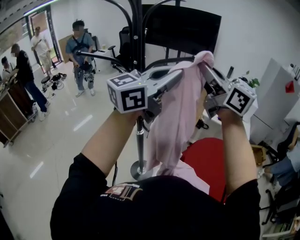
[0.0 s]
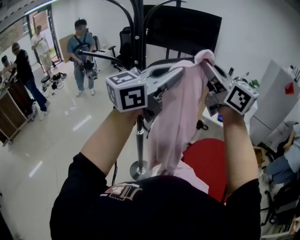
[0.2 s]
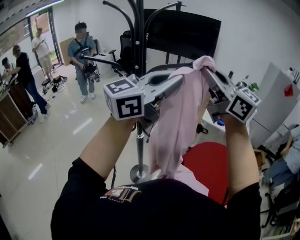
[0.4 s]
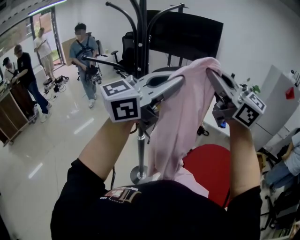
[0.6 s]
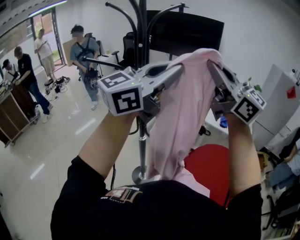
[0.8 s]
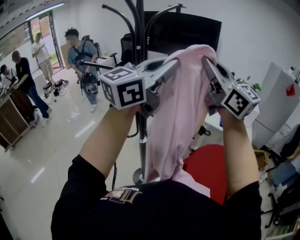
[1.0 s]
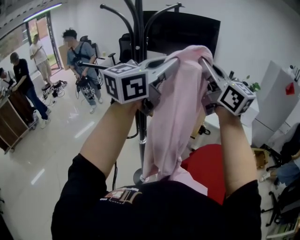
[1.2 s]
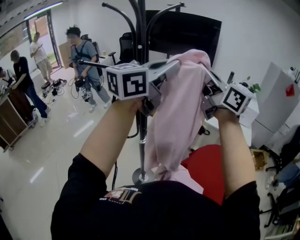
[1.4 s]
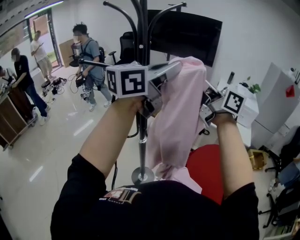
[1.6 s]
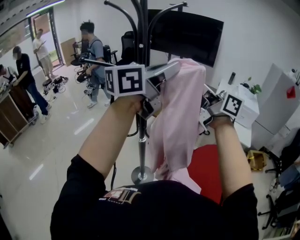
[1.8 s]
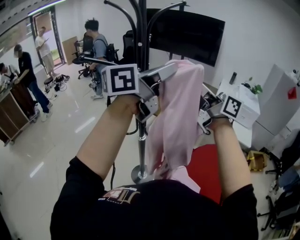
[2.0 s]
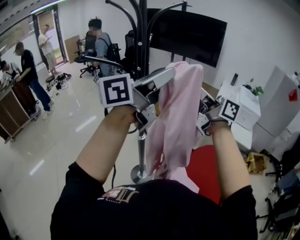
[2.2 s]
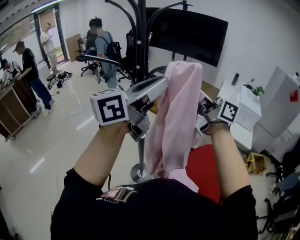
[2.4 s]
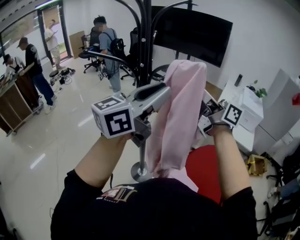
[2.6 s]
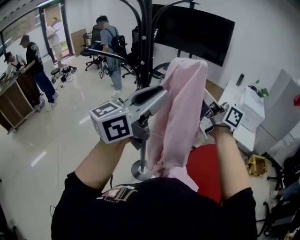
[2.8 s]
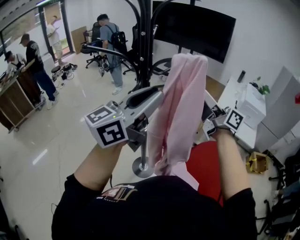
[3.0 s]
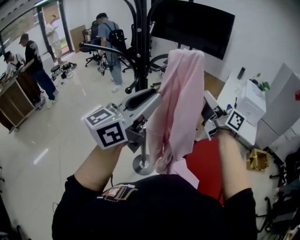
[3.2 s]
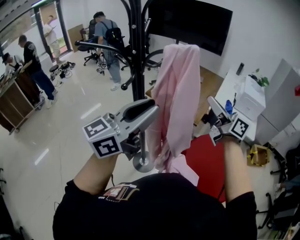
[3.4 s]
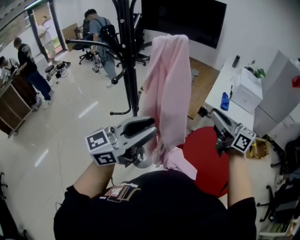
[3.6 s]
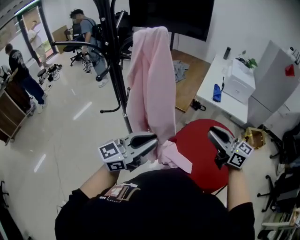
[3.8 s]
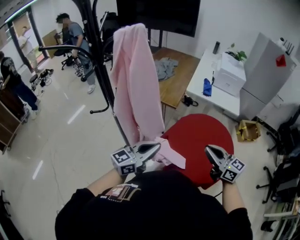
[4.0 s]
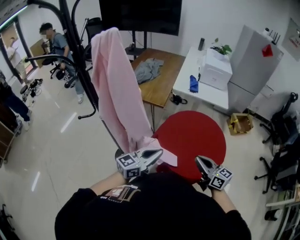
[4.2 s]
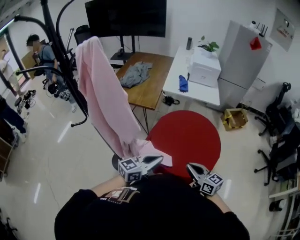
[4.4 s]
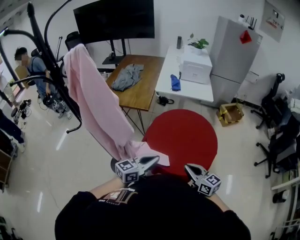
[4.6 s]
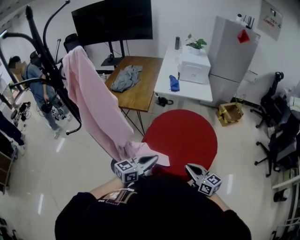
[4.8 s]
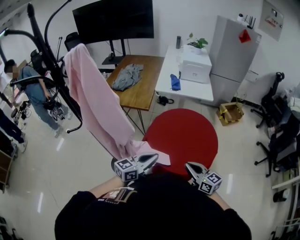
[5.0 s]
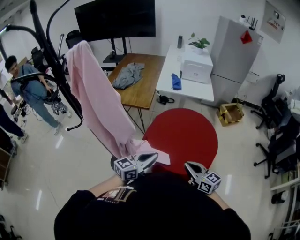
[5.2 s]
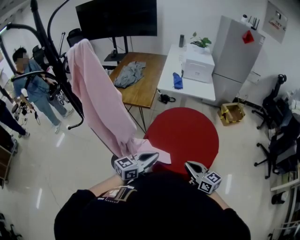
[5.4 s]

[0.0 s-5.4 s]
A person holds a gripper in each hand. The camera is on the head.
0.0 to 1.4 s: The left gripper moves approximately 5 cm.
1.4 to 2.8 s: The left gripper travels downward and backward by roughly 10 cm; the right gripper moves downward, about 10 cm, and changes its angle by some 30 degrees.
2.8 to 4.0 s: The left gripper is displaced downward and to the right by about 35 cm, rotates some 20 degrees, and closes its fingers. Meanwhile the right gripper shifts about 40 cm downward, to the right and backward, swivels about 40 degrees, and closes its fingers.
4.0 to 5.4 s: The left gripper is displaced to the right and downward by some 15 cm, while the right gripper is displaced downward, backward and to the right by some 15 cm.

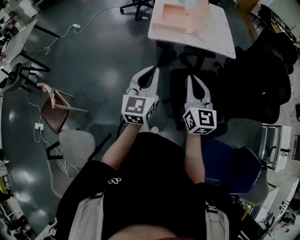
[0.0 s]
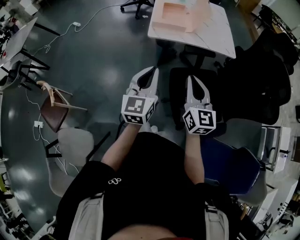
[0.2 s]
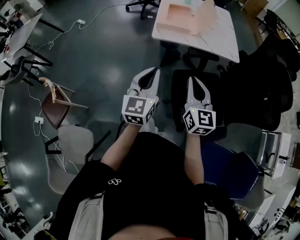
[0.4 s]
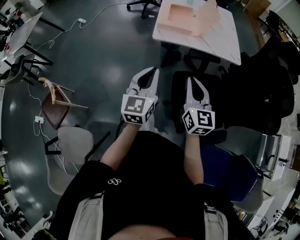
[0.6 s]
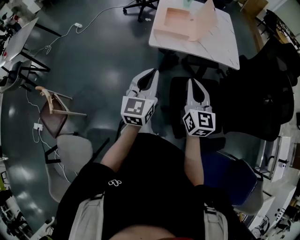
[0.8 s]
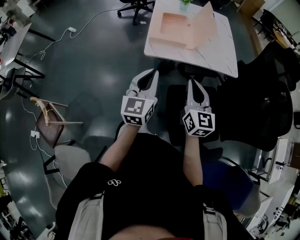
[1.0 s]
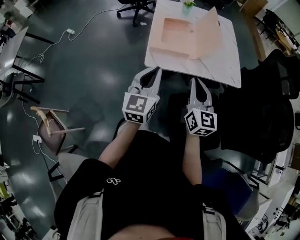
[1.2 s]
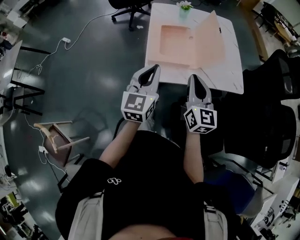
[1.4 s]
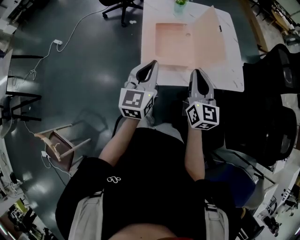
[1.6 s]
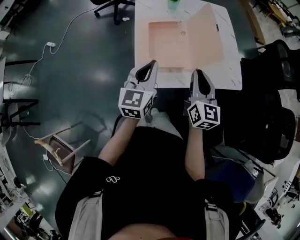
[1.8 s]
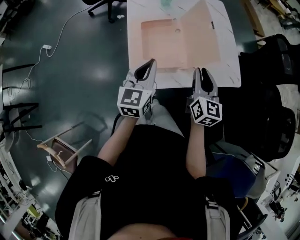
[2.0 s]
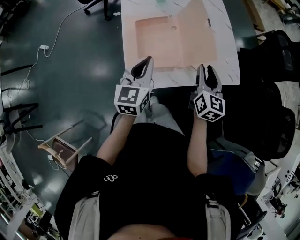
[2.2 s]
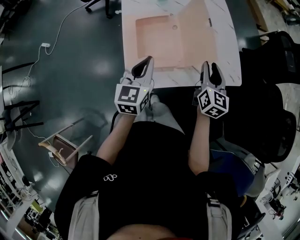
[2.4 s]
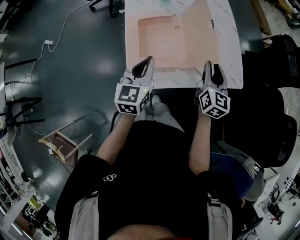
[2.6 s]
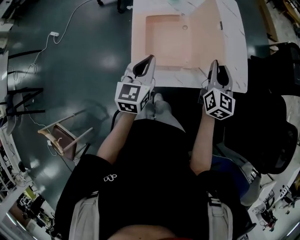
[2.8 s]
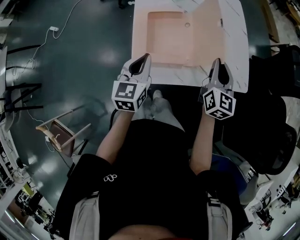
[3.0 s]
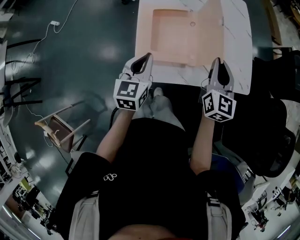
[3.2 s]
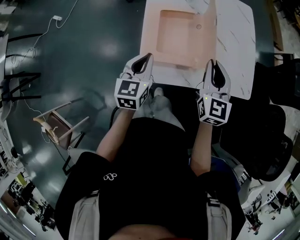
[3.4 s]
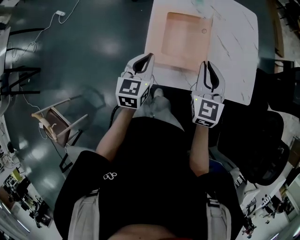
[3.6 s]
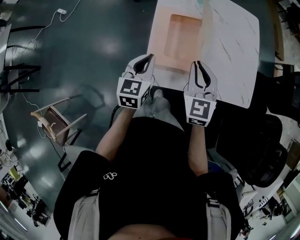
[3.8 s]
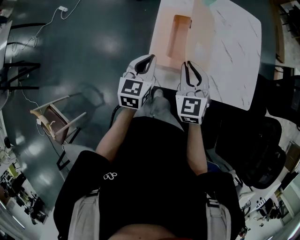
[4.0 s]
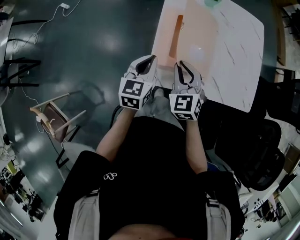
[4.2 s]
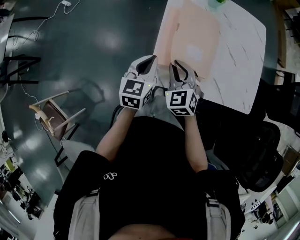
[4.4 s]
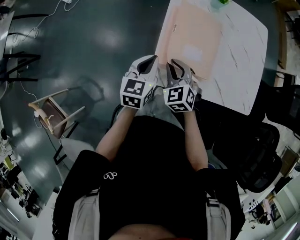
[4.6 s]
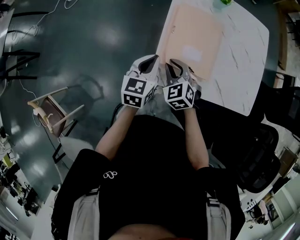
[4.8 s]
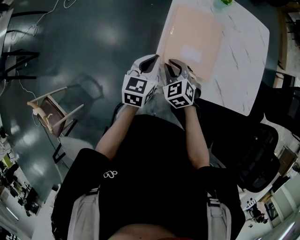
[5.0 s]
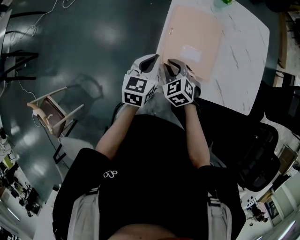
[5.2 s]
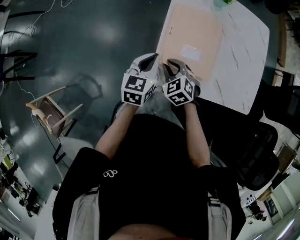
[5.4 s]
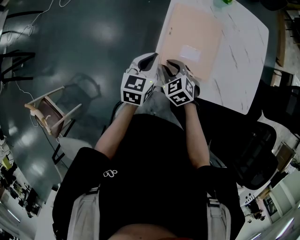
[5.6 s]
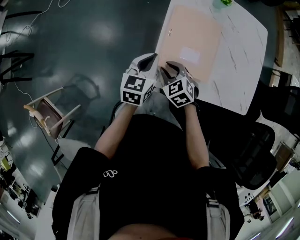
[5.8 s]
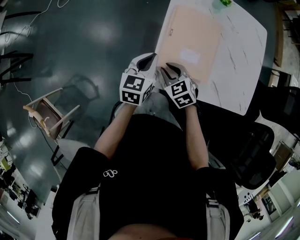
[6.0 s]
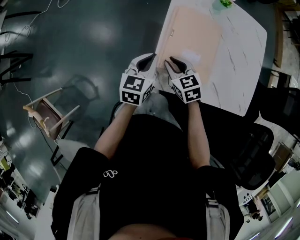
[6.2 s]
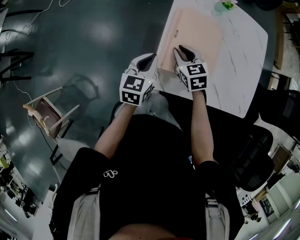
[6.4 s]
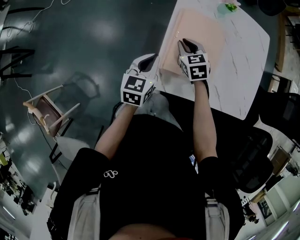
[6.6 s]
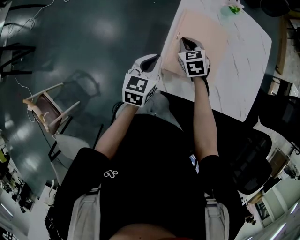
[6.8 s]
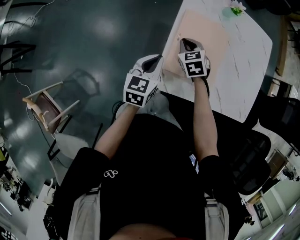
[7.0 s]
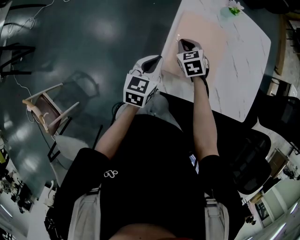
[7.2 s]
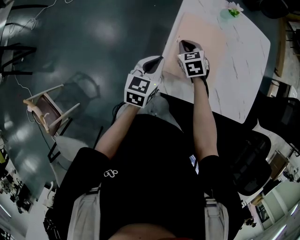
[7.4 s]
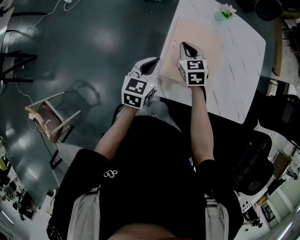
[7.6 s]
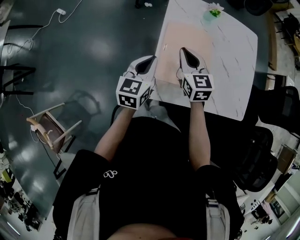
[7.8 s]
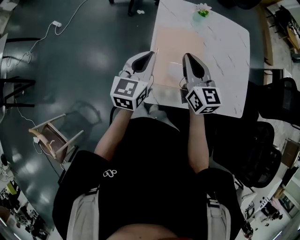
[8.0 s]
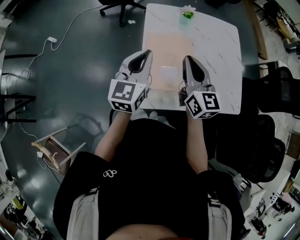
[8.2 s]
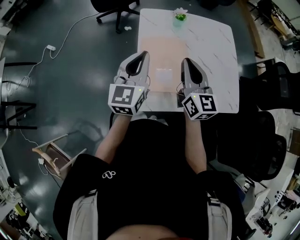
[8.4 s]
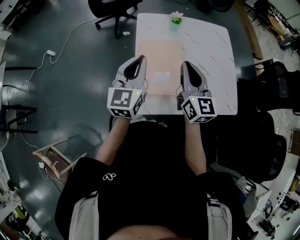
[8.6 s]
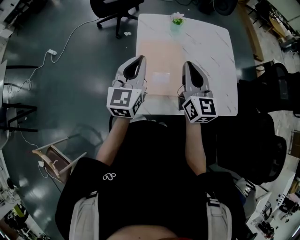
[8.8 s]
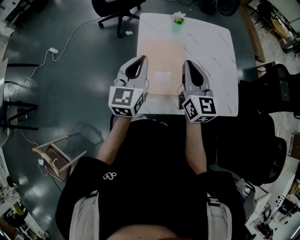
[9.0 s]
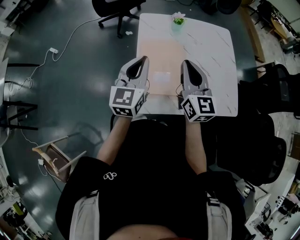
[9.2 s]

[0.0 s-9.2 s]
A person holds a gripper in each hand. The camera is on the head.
0.0 to 1.6 s: The two grippers travel together, forward, some 40 cm.
1.6 to 3.0 s: The left gripper travels forward and downward by roughly 10 cm, while the right gripper moves forward and to the right, some 15 cm, and opens, then closes once more.
3.0 to 4.6 s: The right gripper shifts about 30 cm to the left and downward, and rotates some 60 degrees. Meanwhile the left gripper travels to the left and downward by roughly 10 cm.
4.6 to 6.2 s: The right gripper changes its angle by some 30 degrees.
6.2 to 7.6 s: The right gripper goes some 10 cm forward.
7.6 to 9.2 s: Both grippers travel together upward and to the right, approximately 20 cm. The left gripper swivels about 20 degrees. Meanwhile the right gripper tips its fingers upward by about 40 degrees.

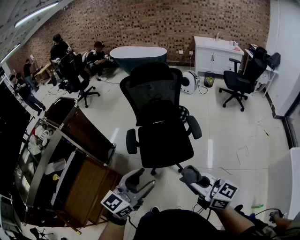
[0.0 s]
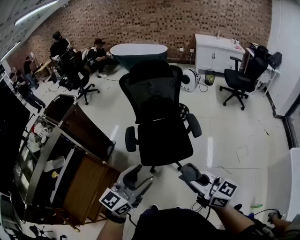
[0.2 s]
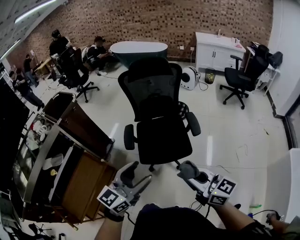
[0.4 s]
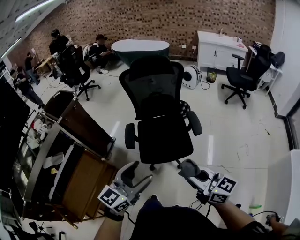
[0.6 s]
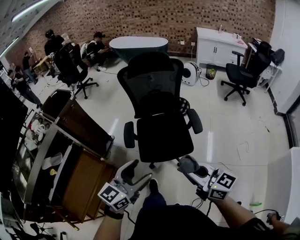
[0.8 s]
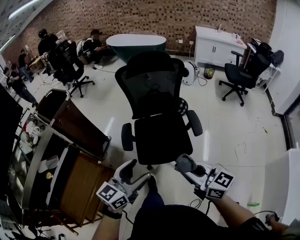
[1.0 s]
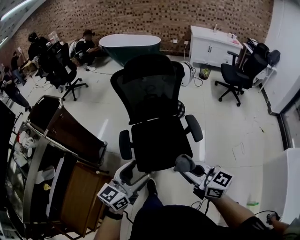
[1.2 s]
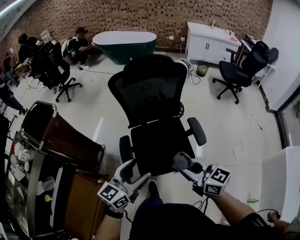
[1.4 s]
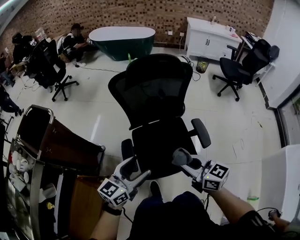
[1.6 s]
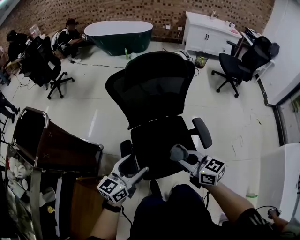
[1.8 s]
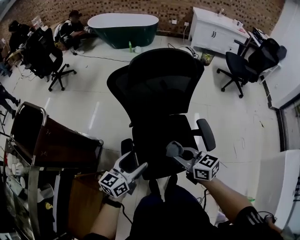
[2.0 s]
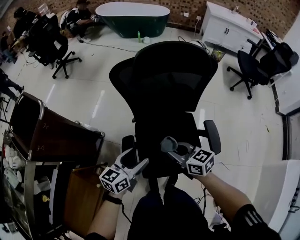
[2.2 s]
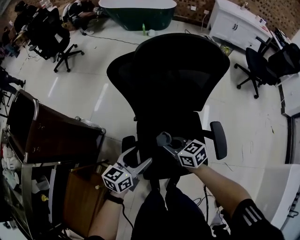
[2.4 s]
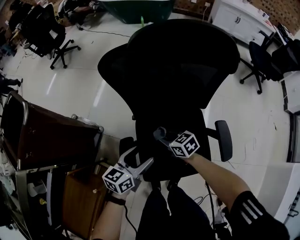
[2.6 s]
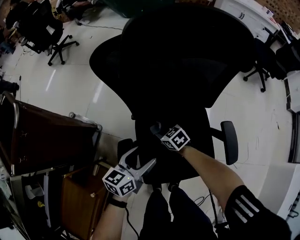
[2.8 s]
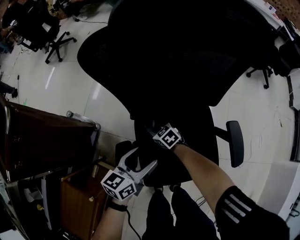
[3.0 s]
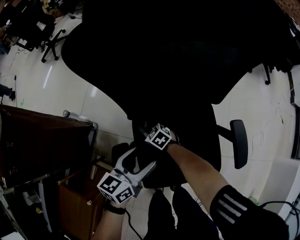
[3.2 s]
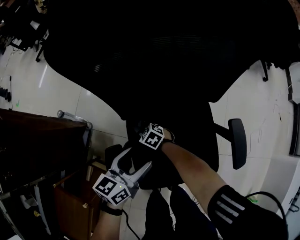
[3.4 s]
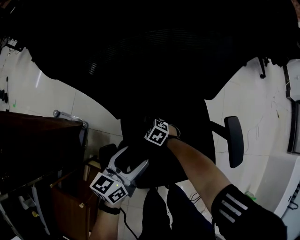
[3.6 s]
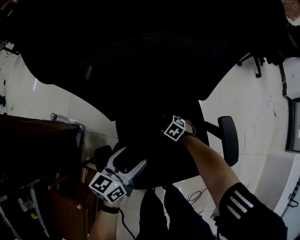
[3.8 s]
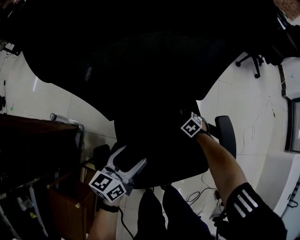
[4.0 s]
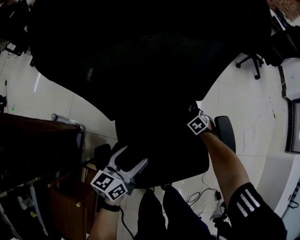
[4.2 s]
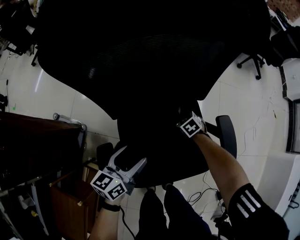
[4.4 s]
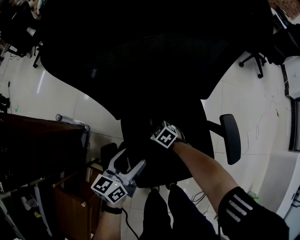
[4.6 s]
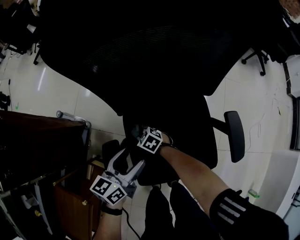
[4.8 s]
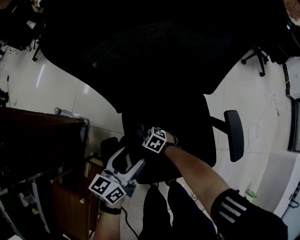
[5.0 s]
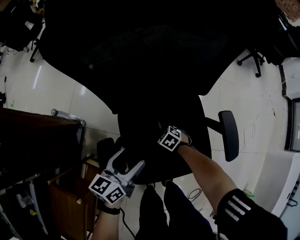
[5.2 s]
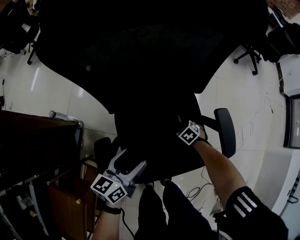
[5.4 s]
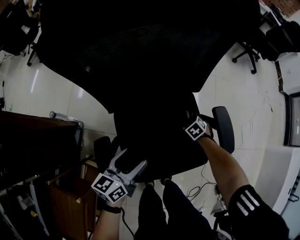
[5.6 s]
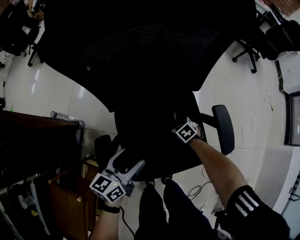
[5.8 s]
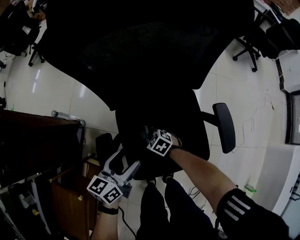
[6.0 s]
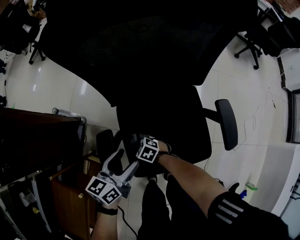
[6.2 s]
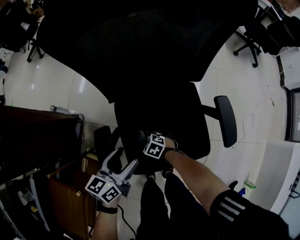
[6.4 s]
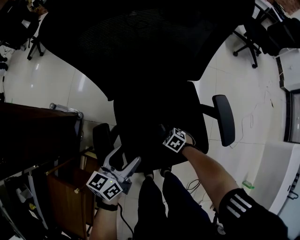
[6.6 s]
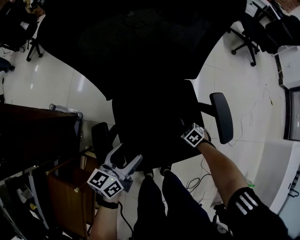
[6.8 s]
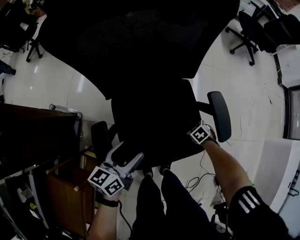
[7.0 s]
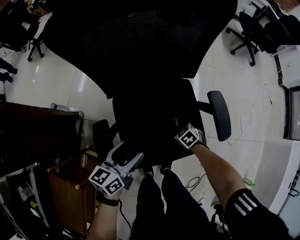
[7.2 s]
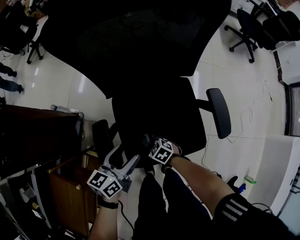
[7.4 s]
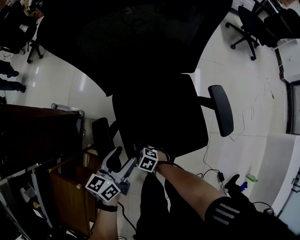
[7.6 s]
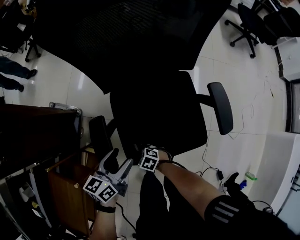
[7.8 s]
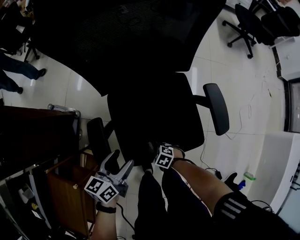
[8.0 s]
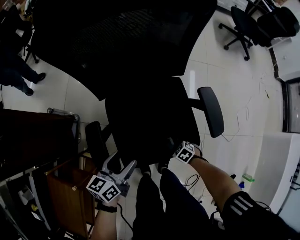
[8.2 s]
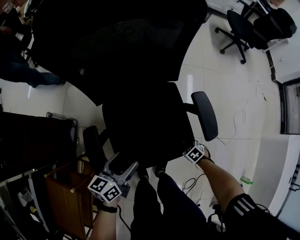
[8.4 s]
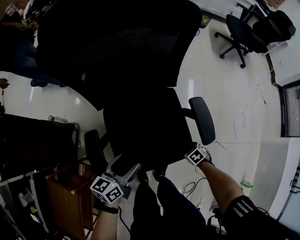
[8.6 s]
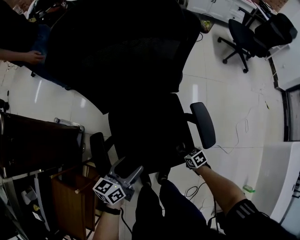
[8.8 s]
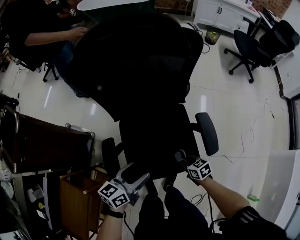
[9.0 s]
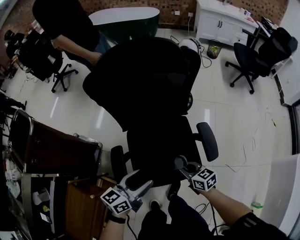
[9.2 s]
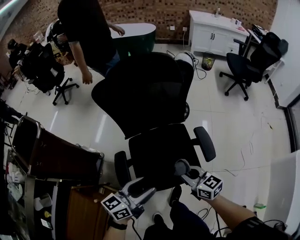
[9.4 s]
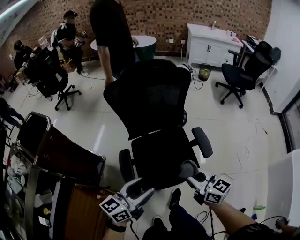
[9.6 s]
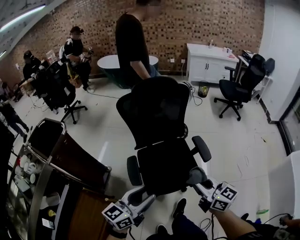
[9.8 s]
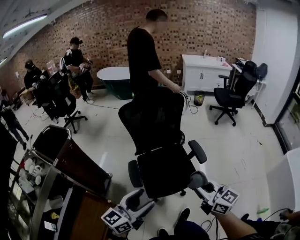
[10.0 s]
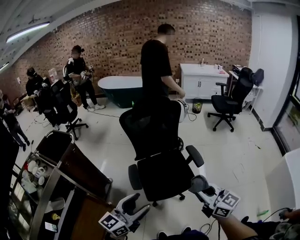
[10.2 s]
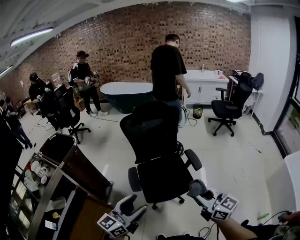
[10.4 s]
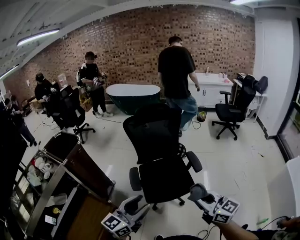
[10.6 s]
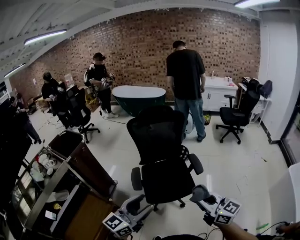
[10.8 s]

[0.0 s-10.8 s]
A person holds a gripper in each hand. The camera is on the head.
0.0 to 1.6 s: Both grippers move forward, some 30 cm.
1.6 to 3.0 s: The right gripper shifts some 60 cm downward and forward, and tilts its fingers some 40 degrees downward, while the left gripper heads downward and forward, covering roughly 35 cm, and swivels approximately 20 degrees.
4.6 to 6.2 s: The left gripper changes place by about 5 cm.
6.2 to 7.8 s: The left gripper moves approximately 5 cm.
7.8 to 9.2 s: The left gripper heads upward, covering roughly 20 cm. The right gripper is displaced upward by approximately 30 cm, and changes its angle by approximately 50 degrees.
9.2 to 10.8 s: The left gripper travels backward and upward by some 50 cm, and changes its angle by roughly 30 degrees. The right gripper heads upward and backward, covering some 50 cm, and angles its fingers upward, by about 30 degrees.
